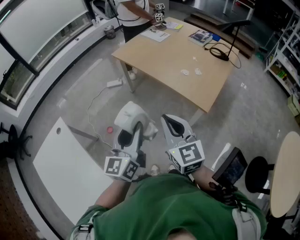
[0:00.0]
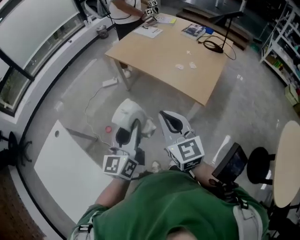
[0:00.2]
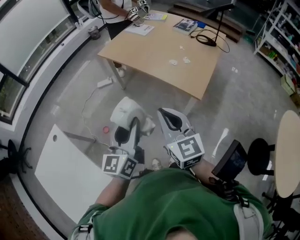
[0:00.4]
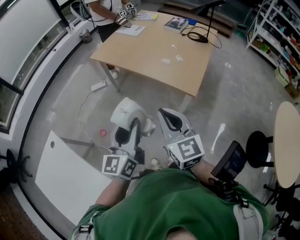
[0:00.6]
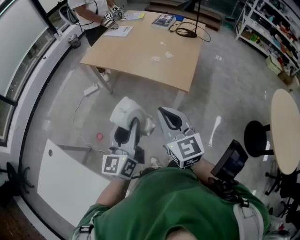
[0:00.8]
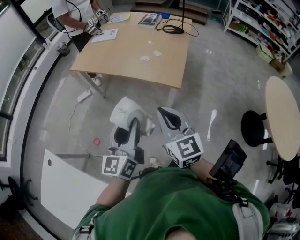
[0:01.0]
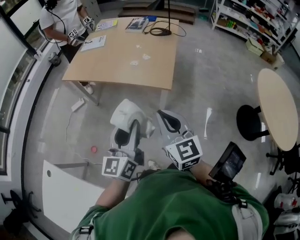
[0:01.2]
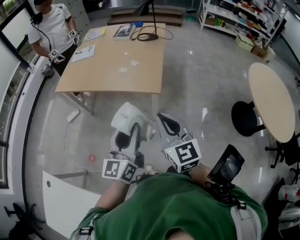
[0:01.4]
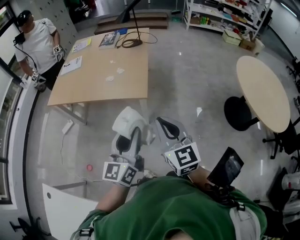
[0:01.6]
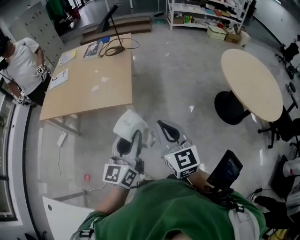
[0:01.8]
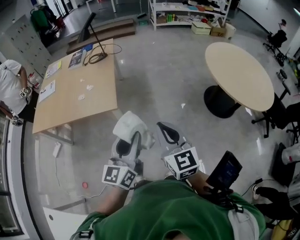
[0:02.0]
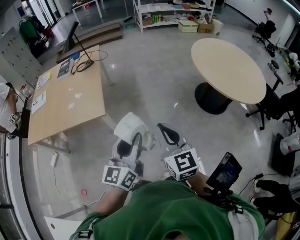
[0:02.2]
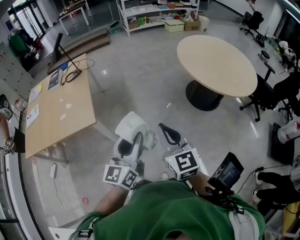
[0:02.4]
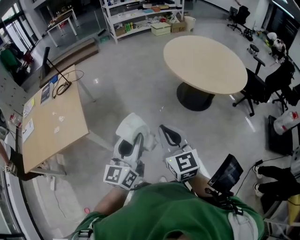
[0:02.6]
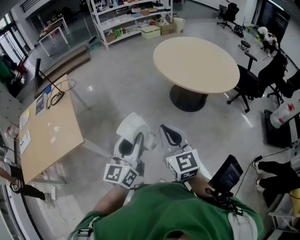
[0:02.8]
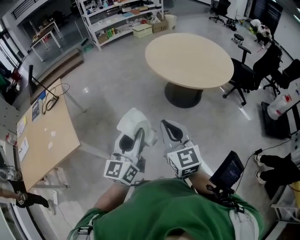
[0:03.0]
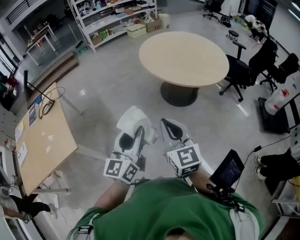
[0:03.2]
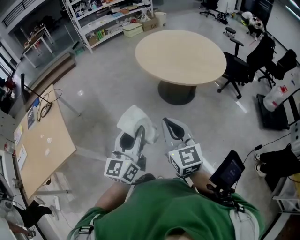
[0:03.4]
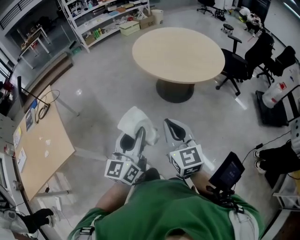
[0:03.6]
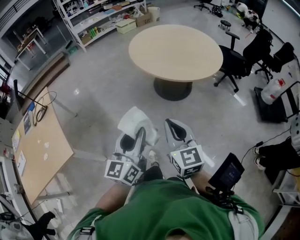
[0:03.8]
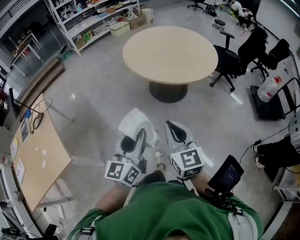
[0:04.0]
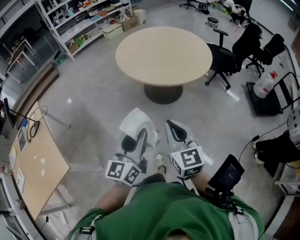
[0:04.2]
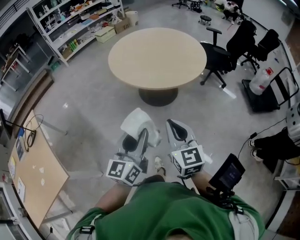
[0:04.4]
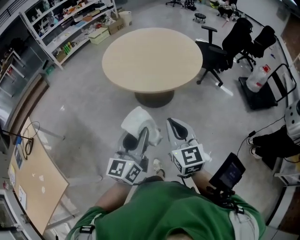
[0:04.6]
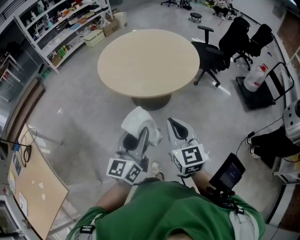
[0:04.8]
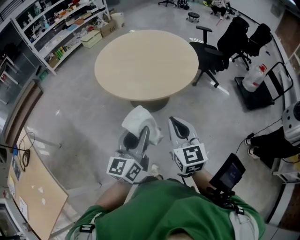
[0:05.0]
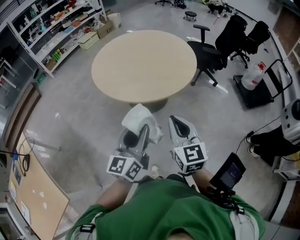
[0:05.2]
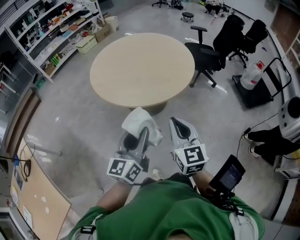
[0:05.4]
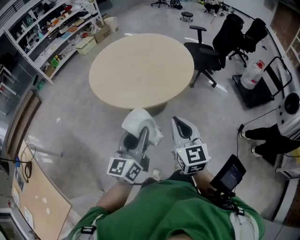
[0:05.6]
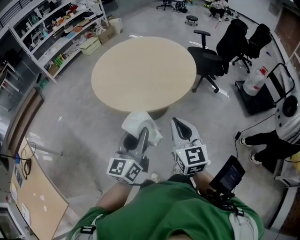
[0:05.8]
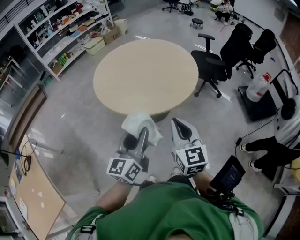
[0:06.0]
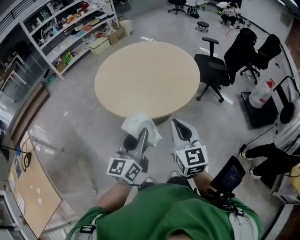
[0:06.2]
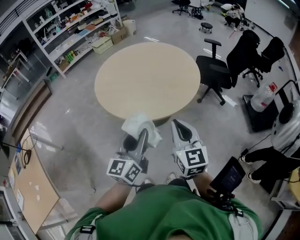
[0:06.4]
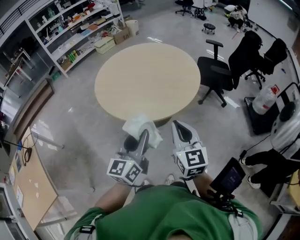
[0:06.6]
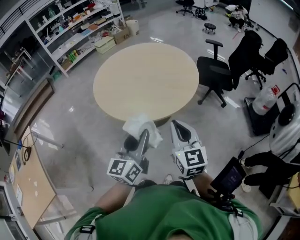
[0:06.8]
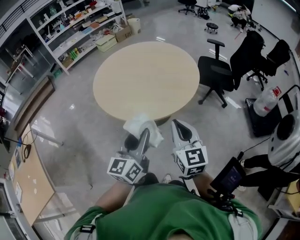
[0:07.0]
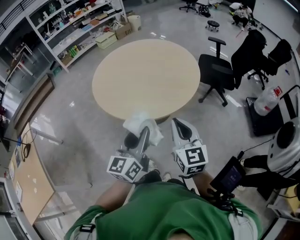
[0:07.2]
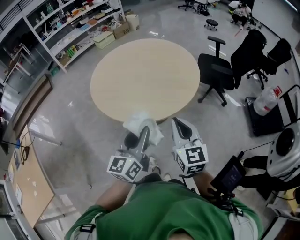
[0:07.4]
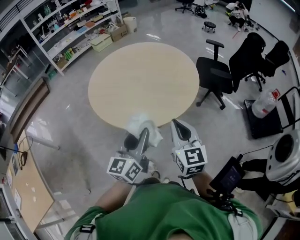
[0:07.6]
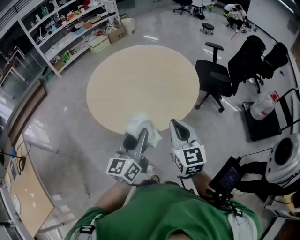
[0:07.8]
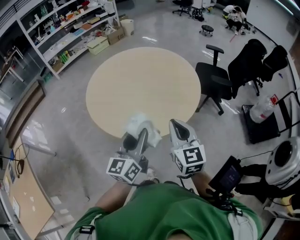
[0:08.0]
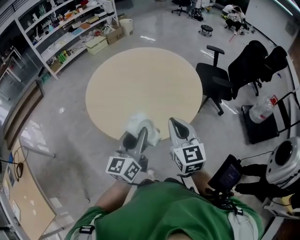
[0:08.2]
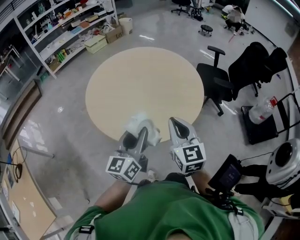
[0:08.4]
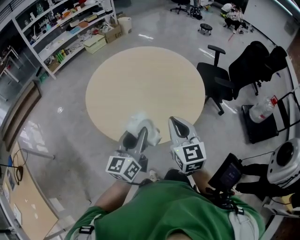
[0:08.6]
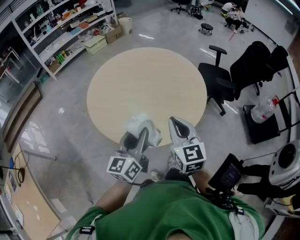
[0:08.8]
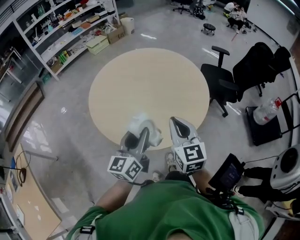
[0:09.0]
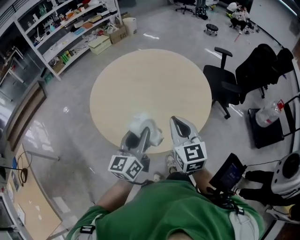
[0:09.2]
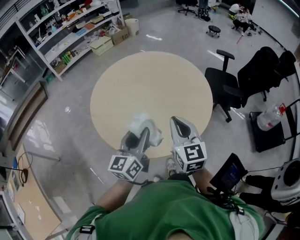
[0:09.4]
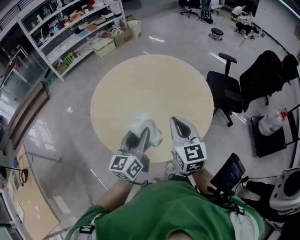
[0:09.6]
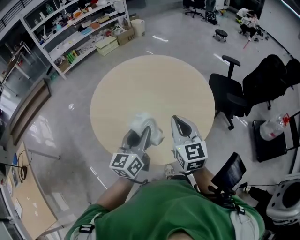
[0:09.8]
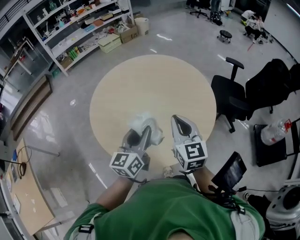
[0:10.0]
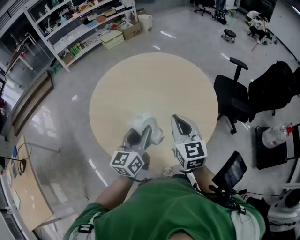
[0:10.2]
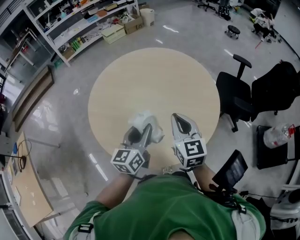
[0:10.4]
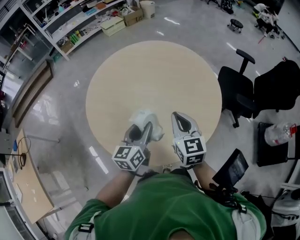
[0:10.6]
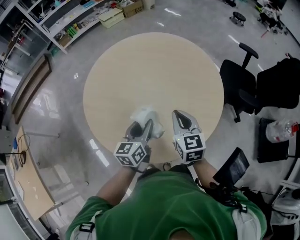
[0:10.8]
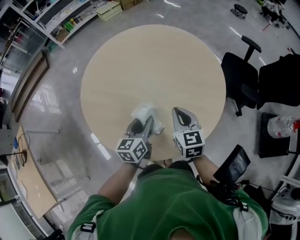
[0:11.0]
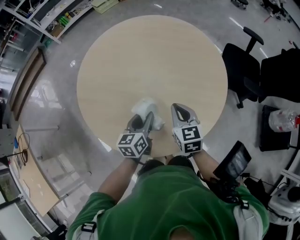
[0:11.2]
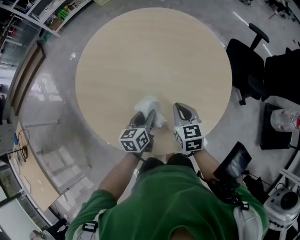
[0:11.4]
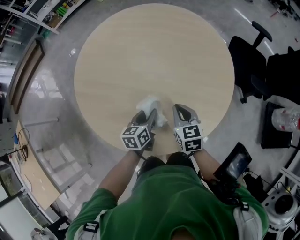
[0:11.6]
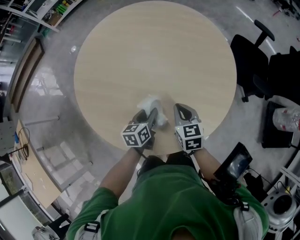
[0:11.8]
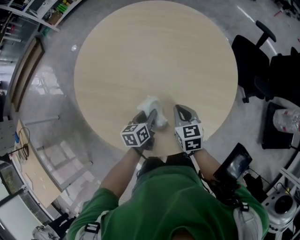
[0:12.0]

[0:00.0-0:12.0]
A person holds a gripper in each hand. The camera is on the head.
0:00.0 to 0:01.6: The right gripper moves approximately 20 cm, and swivels some 40 degrees, while the left gripper moves roughly 20 cm, and swivels roughly 40 degrees.
0:01.6 to 0:03.0: Both grippers are carried roughly 40 cm. The right gripper swivels some 40 degrees. Meanwhile the left gripper rotates some 40 degrees.
0:03.0 to 0:04.4: The two grippers go roughly 15 cm to the right and forward.
0:04.4 to 0:06.0: Both grippers travel together forward and to the right, approximately 20 cm.
0:06.0 to 0:07.6: The grippers both shift forward and to the right by about 15 cm.
0:07.6 to 0:09.0: The grippers both shift forward and to the left by some 15 cm.
0:09.0 to 0:10.4: The grippers both shift forward by approximately 15 cm.
0:10.4 to 0:12.0: The two grippers go some 25 cm downward. The right gripper rotates some 30 degrees. Meanwhile the left gripper points its fingers some 30 degrees further downward.

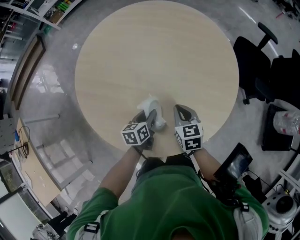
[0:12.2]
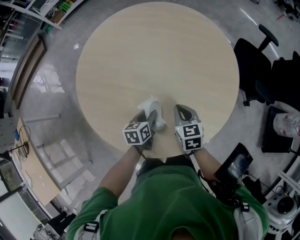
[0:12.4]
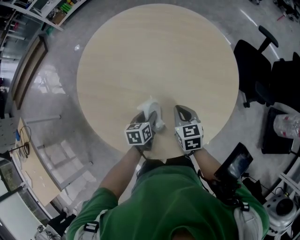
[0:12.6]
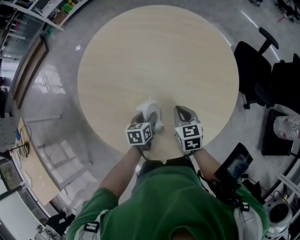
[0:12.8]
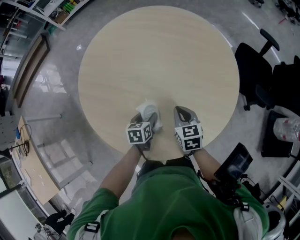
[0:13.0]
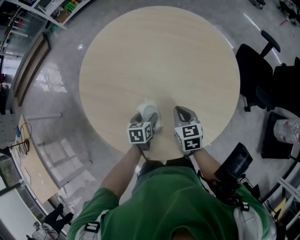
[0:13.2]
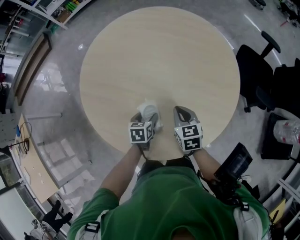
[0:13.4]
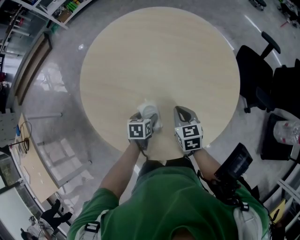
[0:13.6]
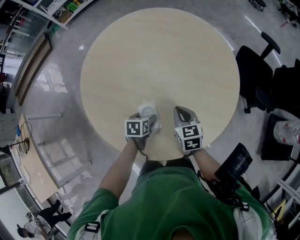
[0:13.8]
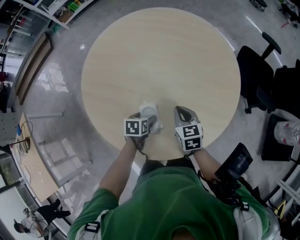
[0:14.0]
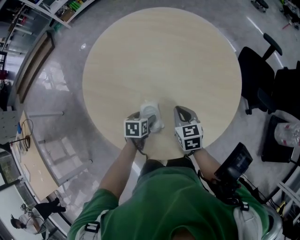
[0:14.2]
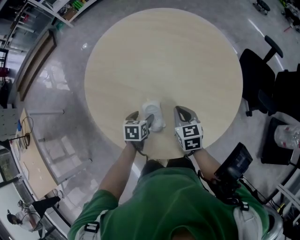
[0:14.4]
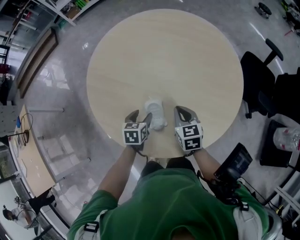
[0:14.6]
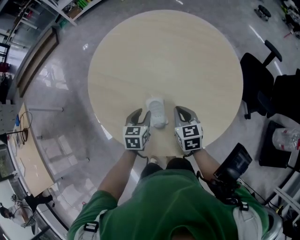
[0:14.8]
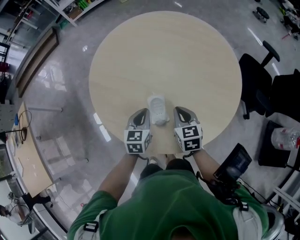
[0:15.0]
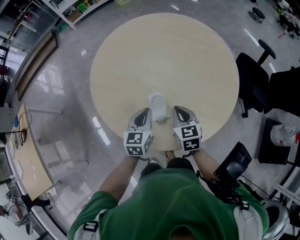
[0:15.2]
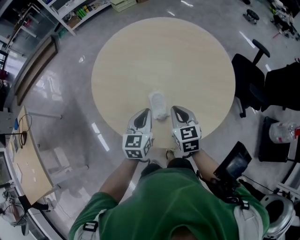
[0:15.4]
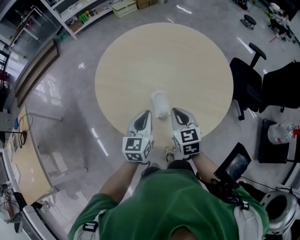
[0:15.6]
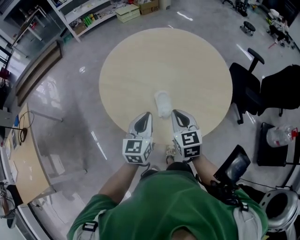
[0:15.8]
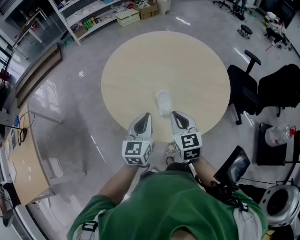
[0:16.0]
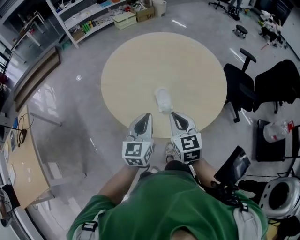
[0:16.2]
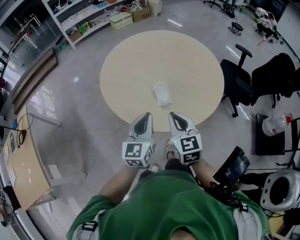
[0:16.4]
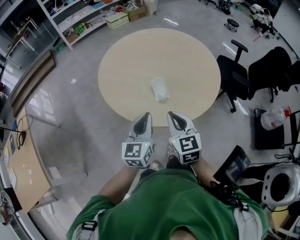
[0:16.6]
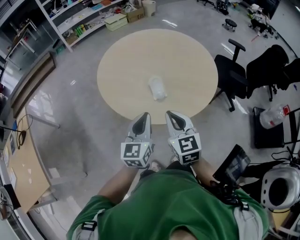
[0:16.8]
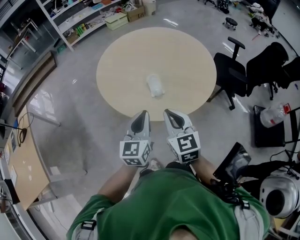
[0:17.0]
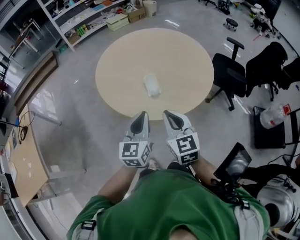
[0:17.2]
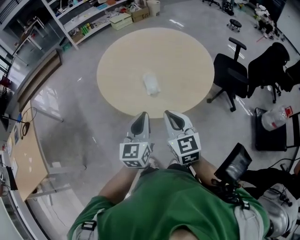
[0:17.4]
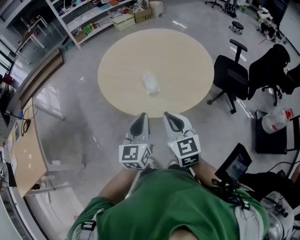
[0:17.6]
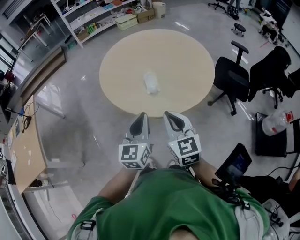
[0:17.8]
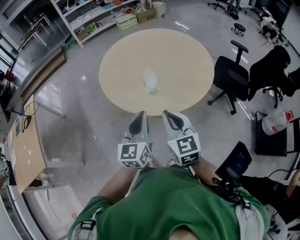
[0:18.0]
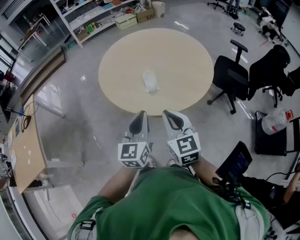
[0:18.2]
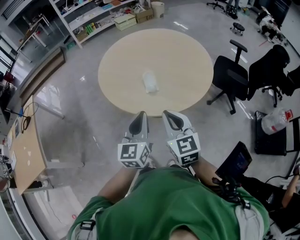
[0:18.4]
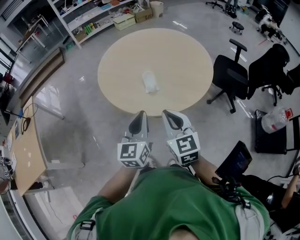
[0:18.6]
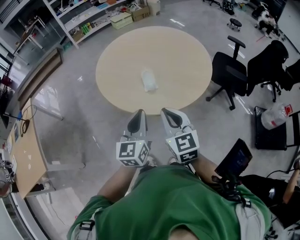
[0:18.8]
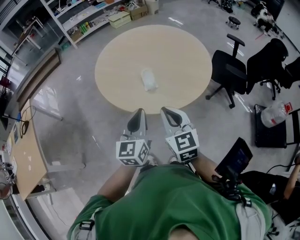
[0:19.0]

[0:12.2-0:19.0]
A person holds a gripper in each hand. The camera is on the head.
0:12.2 to 0:13.6: The left gripper changes its angle by about 20 degrees, and opens up.
0:13.6 to 0:15.0: The right gripper changes place by about 5 cm; the left gripper is displaced upward by approximately 10 cm, changes its angle by about 30 degrees, and closes.
0:15.0 to 0:16.2: The right gripper shifts some 20 cm backward, upward and to the left; the left gripper shifts roughly 20 cm upward and backward, and swivels approximately 30 degrees.
0:16.2 to 0:17.6: The right gripper heads backward, covering approximately 15 cm; the left gripper goes approximately 15 cm backward and to the right.
0:17.6 to 0:19.0: The grippers stay close to where they were, moving slightly.

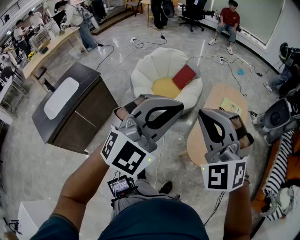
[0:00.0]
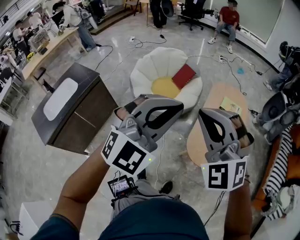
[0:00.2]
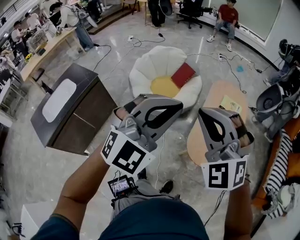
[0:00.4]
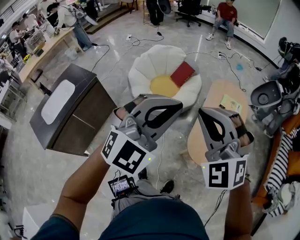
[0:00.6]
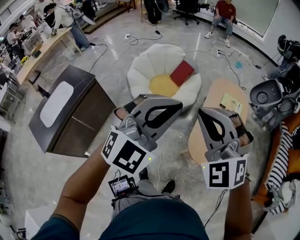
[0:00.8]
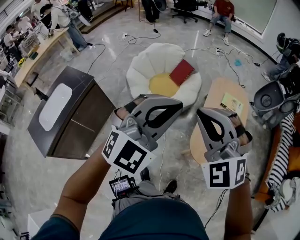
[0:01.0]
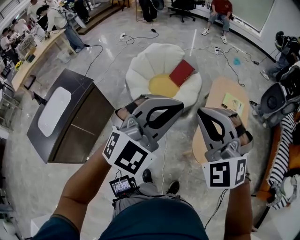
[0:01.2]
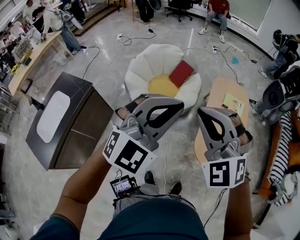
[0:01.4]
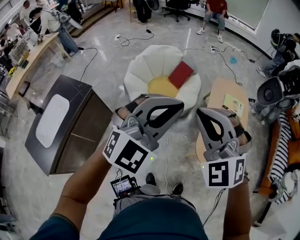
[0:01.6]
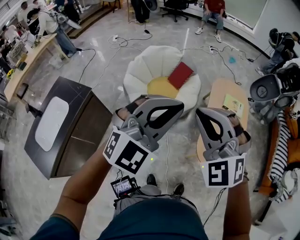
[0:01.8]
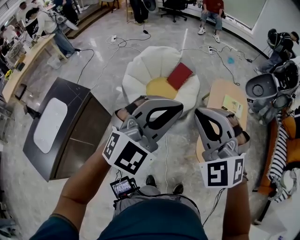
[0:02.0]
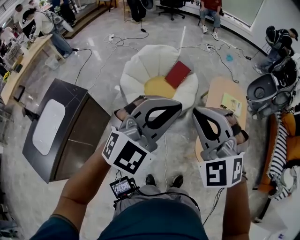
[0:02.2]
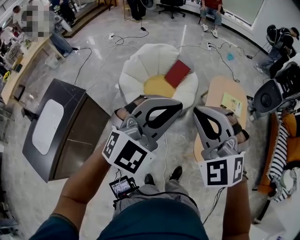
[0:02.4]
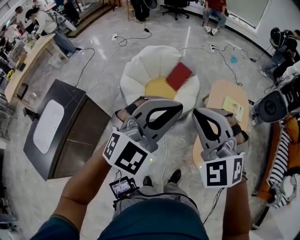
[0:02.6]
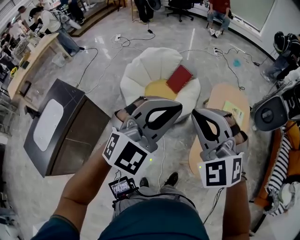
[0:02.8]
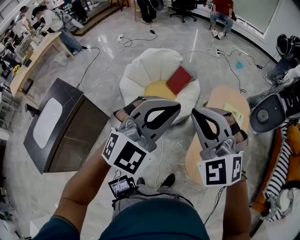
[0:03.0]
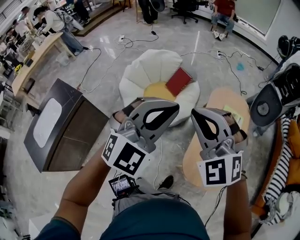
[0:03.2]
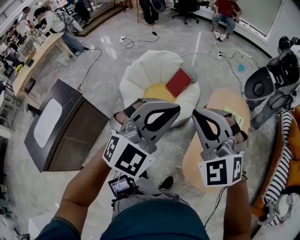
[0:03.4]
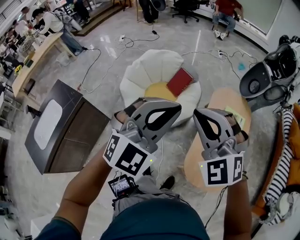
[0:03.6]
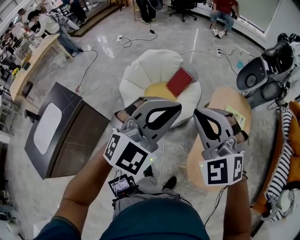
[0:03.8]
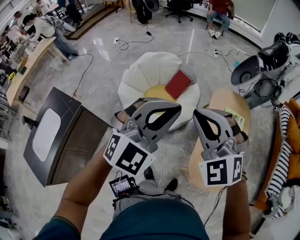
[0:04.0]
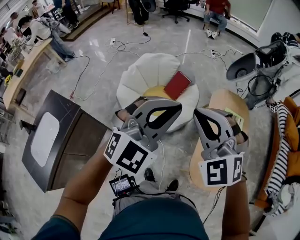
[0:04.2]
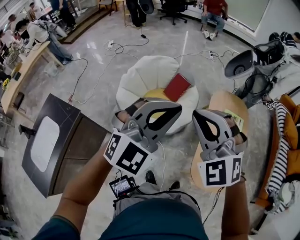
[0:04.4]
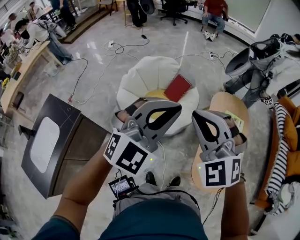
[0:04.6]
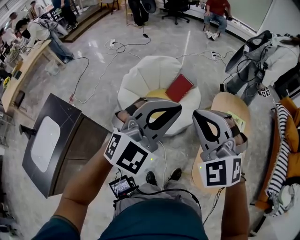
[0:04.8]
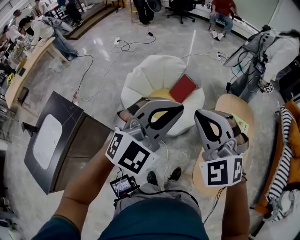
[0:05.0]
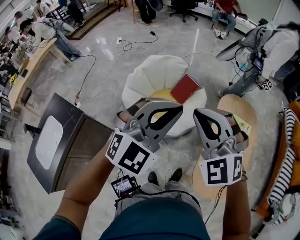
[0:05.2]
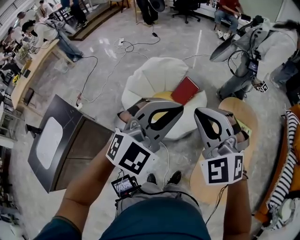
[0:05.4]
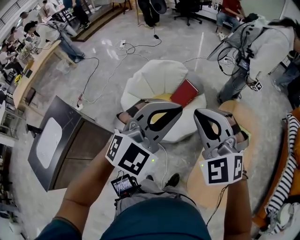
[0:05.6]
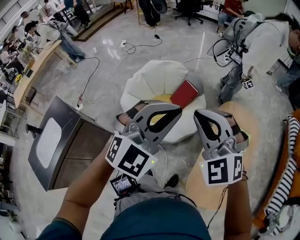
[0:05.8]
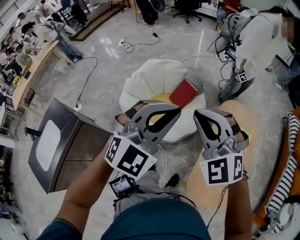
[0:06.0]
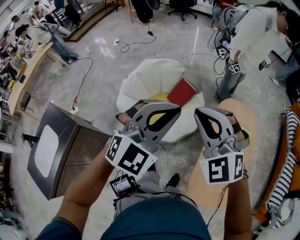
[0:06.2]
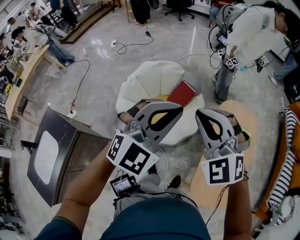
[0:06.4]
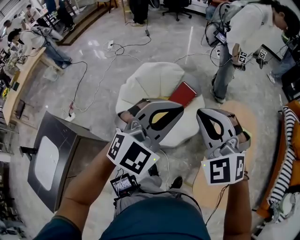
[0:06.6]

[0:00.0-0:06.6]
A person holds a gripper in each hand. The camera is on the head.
0:00.0 to 0:01.6: Both grippers move to the left and forward, approximately 15 cm.
0:01.6 to 0:03.2: The two grippers go roughly 15 cm forward and to the right.
0:03.2 to 0:05.0: The grippers both shift to the left and forward by roughly 15 cm.
0:05.0 to 0:06.6: The grippers both shift forward by some 15 cm.
